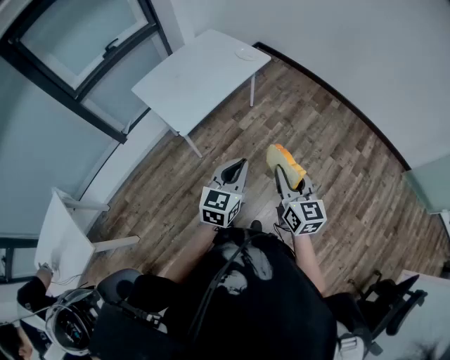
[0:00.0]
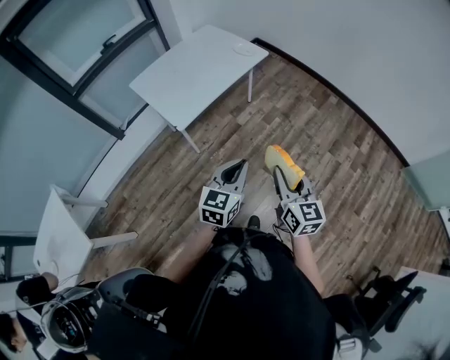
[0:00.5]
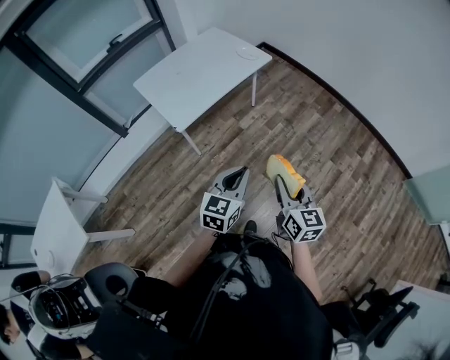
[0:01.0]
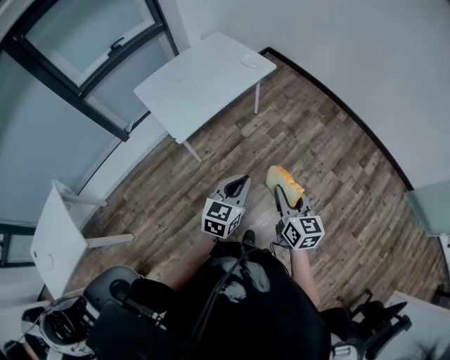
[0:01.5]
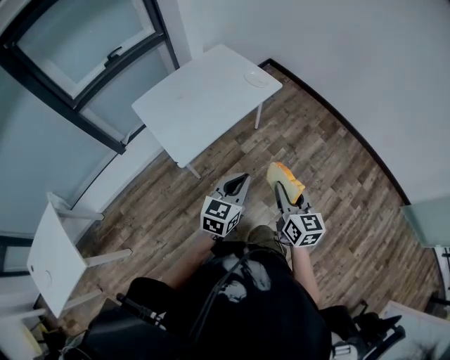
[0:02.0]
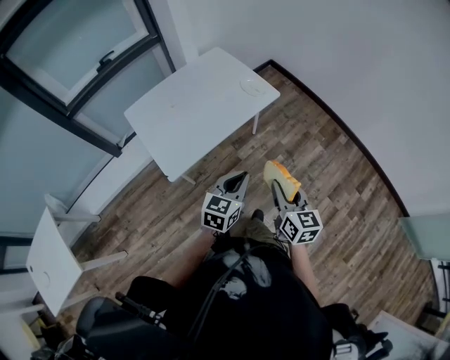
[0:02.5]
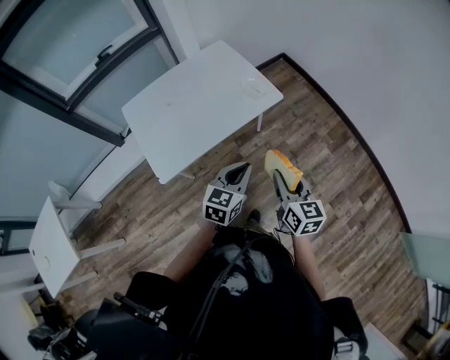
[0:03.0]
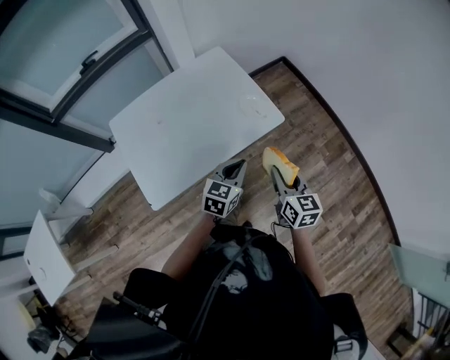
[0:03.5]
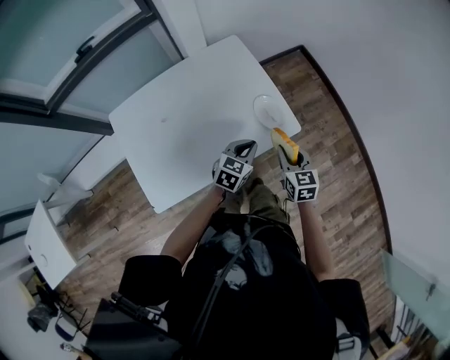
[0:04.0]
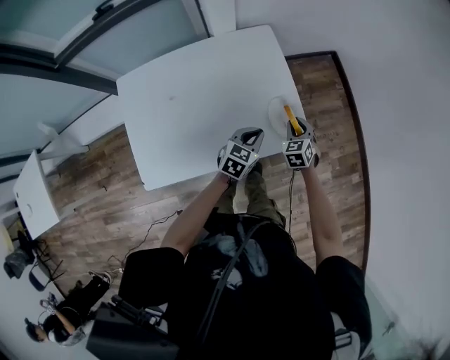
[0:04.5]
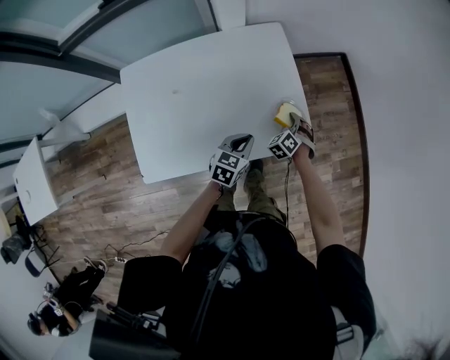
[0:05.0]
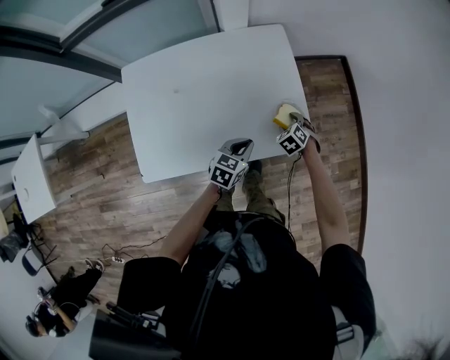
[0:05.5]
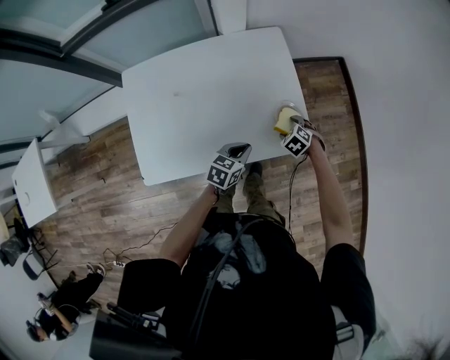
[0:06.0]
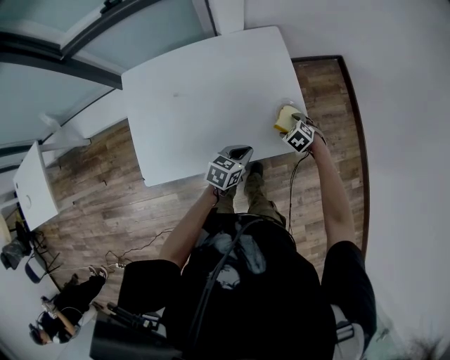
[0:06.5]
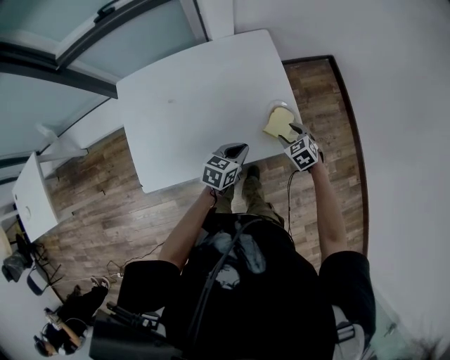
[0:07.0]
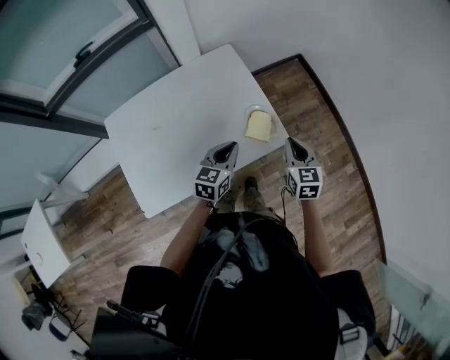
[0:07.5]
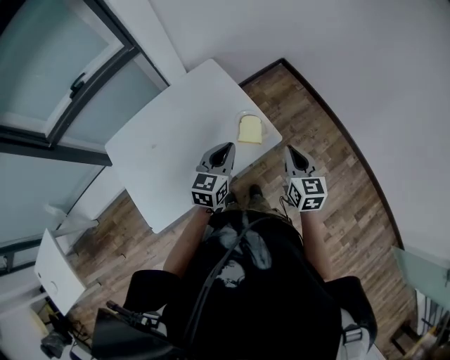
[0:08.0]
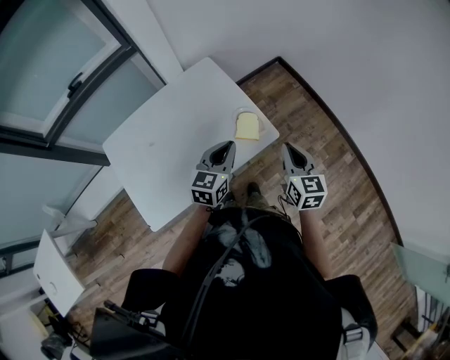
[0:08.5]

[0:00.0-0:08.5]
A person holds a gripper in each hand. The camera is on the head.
0.0 to 2.0 s: Both grippers travel together forward, approximately 15 cm.
2.0 to 4.0 s: The pair of grippers is taken forward, roughly 50 cm. The right gripper rotates some 30 degrees.
4.0 to 6.5 s: The right gripper is displaced downward by approximately 20 cm, angles its fingers downward, by some 40 degrees, and opens its fingers. Meanwhile the left gripper heads downward, covering about 5 cm, and changes its angle by approximately 20 degrees.
6.5 to 8.5 s: The left gripper is displaced upward by roughly 20 cm, and changes its angle by approximately 30 degrees, while the right gripper moves upward, roughly 30 cm, tilts its fingers approximately 50 degrees upward, and closes.

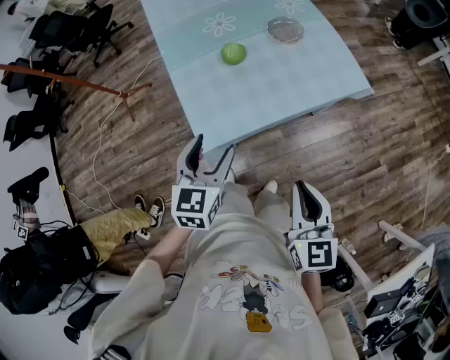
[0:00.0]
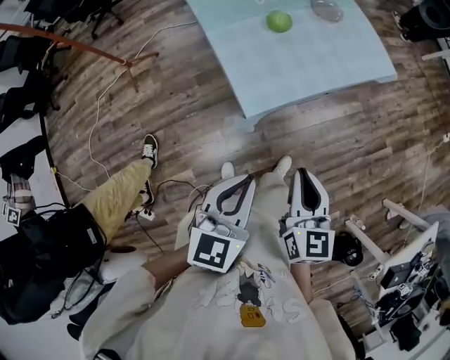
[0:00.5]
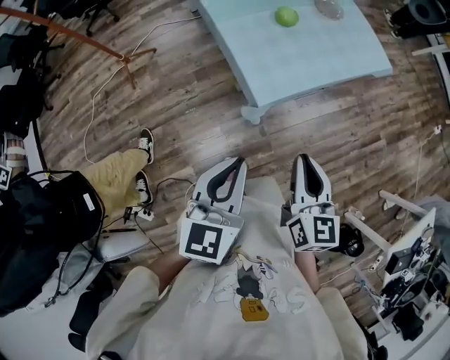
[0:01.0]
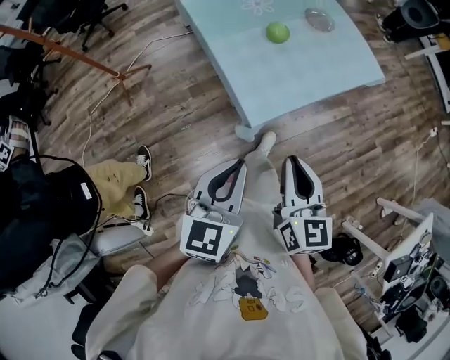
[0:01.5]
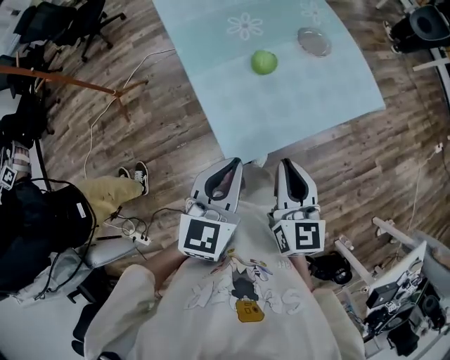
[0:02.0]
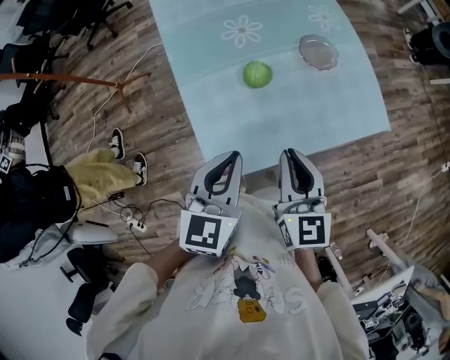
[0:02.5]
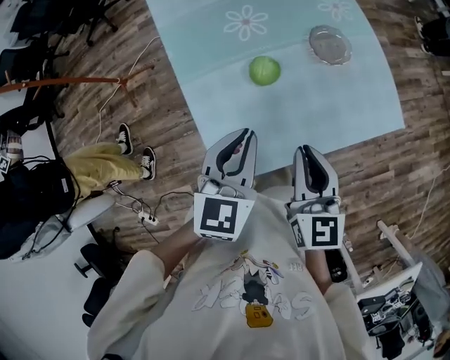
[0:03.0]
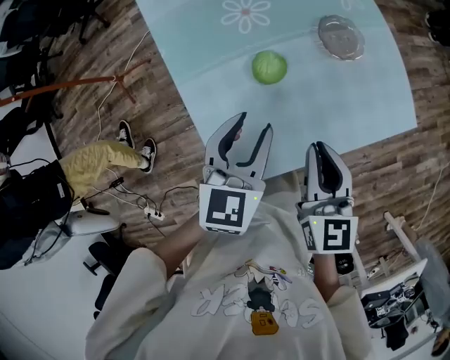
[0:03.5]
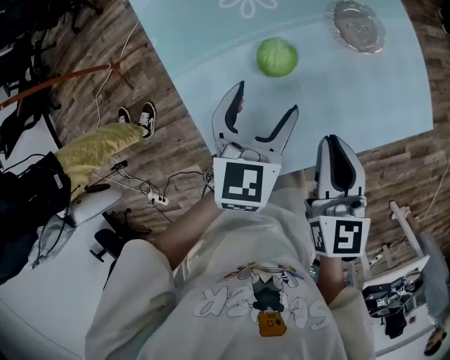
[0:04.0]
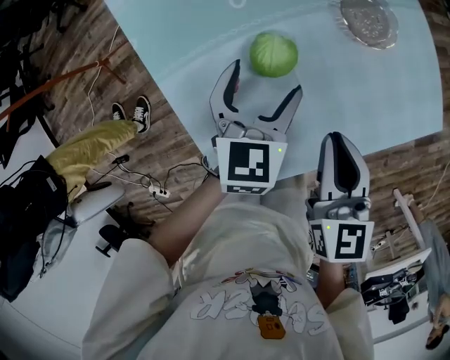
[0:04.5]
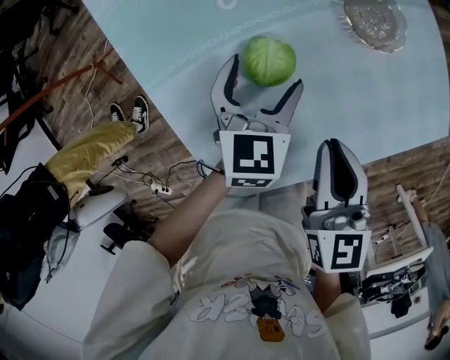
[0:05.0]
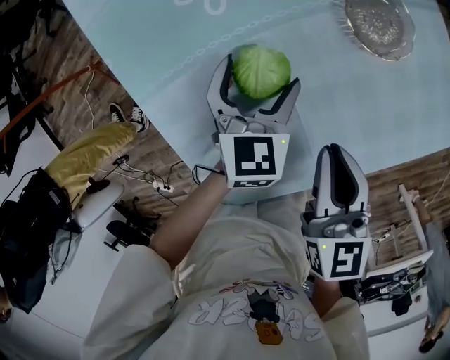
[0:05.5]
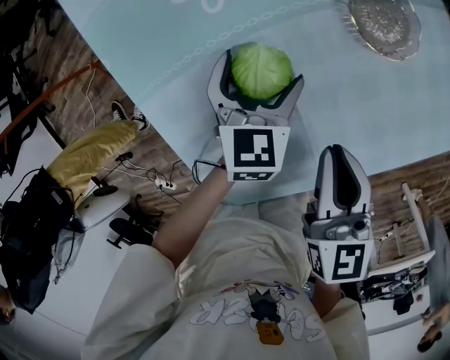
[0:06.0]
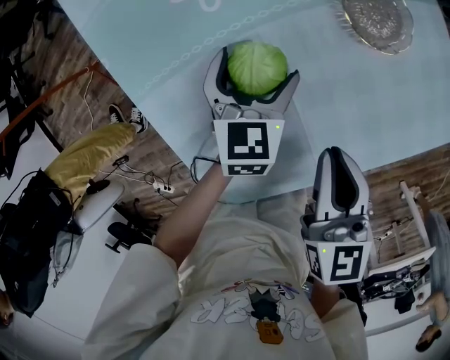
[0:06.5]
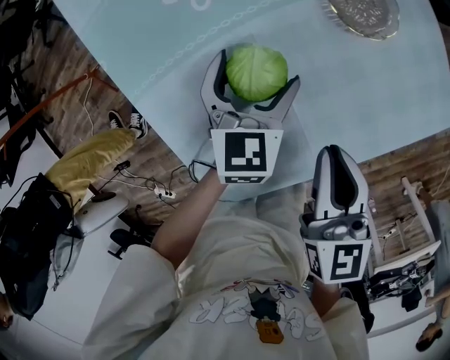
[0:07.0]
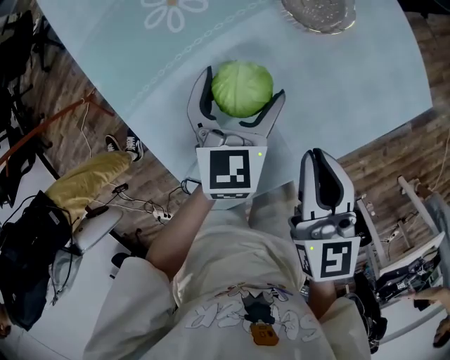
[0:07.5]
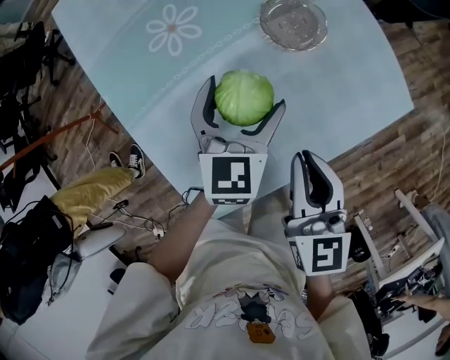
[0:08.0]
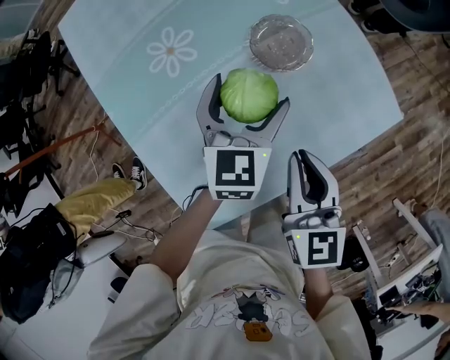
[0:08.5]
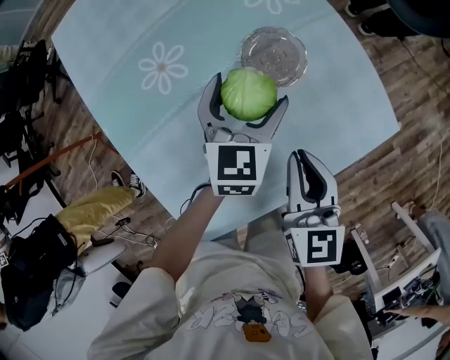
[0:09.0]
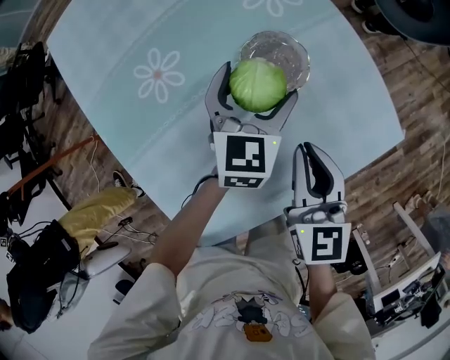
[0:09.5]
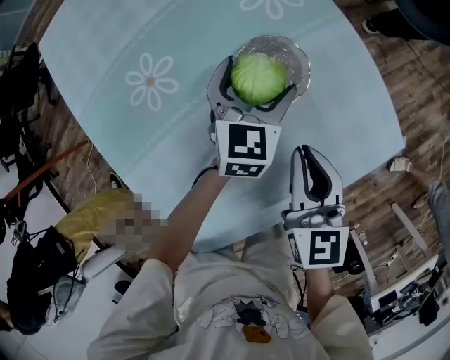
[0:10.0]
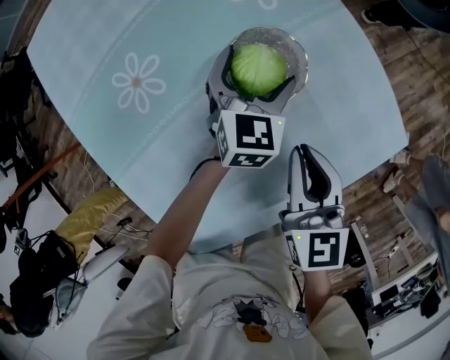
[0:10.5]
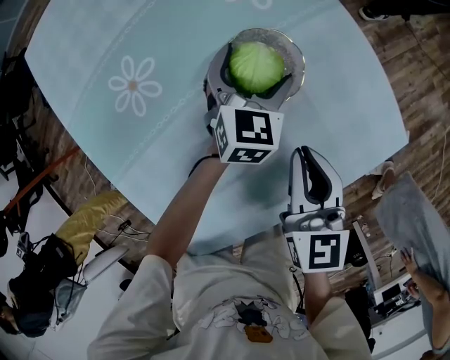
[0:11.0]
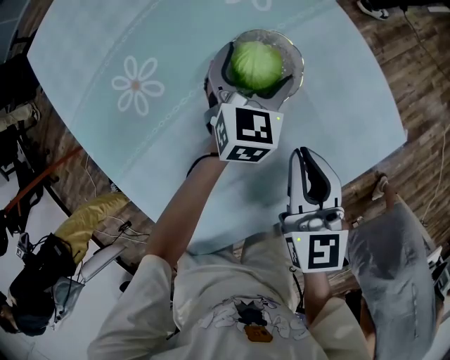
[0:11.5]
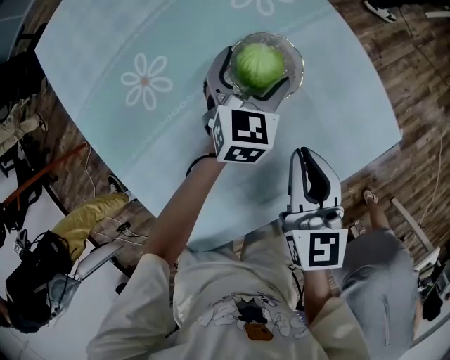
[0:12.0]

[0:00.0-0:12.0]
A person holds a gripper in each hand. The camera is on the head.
0.0 to 2.0 s: The left gripper is displaced to the left by roughly 10 cm, moves roughly 20 cm backward and comes back, and closes its fingers. The right gripper goes about 20 cm to the left and forward.
2.0 to 4.0 s: Both grippers move forward and downward, about 30 cm. The left gripper opens its fingers.
4.0 to 6.0 s: The left gripper moves downward and forward, approximately 20 cm. Meanwhile the right gripper moves downward, roughly 10 cm.
6.0 to 8.0 s: The left gripper goes about 15 cm upward and to the right. Meanwhile the right gripper moves upward and to the right, some 10 cm.
8.0 to 10.0 s: The left gripper is displaced forward and to the right by about 20 cm. The right gripper is displaced forward by approximately 15 cm.
10.0 to 12.0 s: The grippers move only a little.

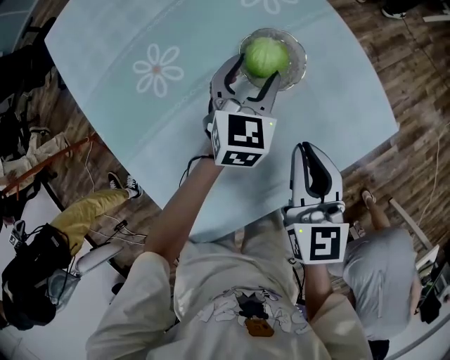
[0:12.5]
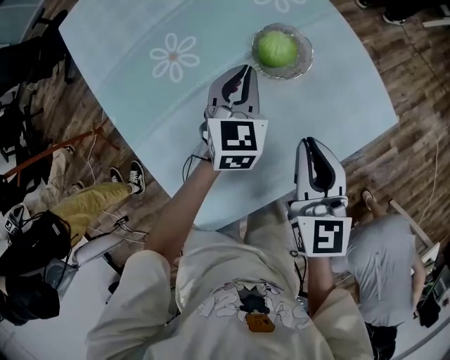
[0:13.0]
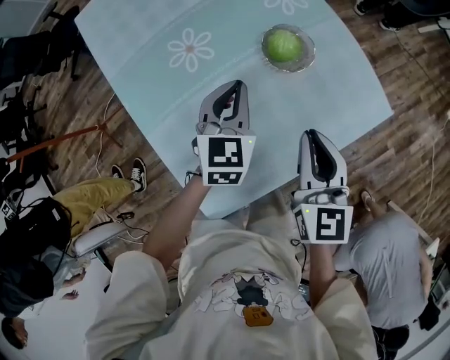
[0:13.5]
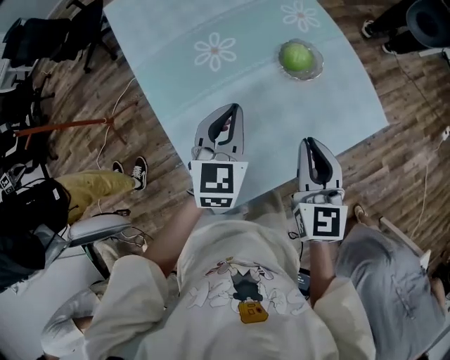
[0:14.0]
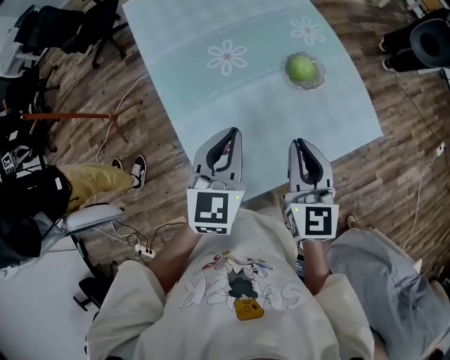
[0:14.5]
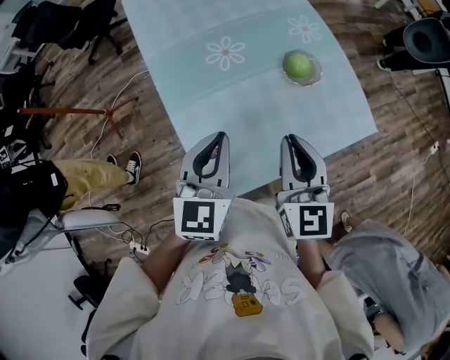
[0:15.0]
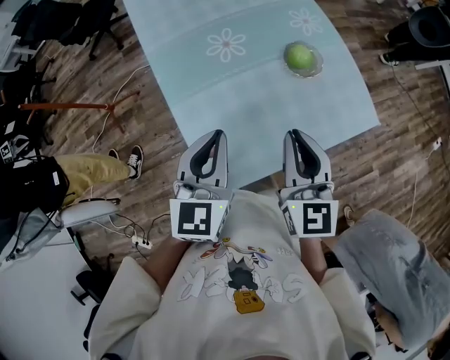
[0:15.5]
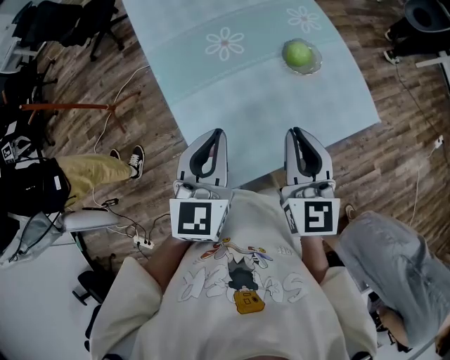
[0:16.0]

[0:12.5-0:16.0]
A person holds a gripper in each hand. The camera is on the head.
12.5 to 14.5 s: The left gripper heads backward, upward and to the left, covering roughly 40 cm, and closes, while the right gripper shifts approximately 20 cm upward, backward and to the left.
14.5 to 16.0 s: The left gripper goes roughly 5 cm backward.

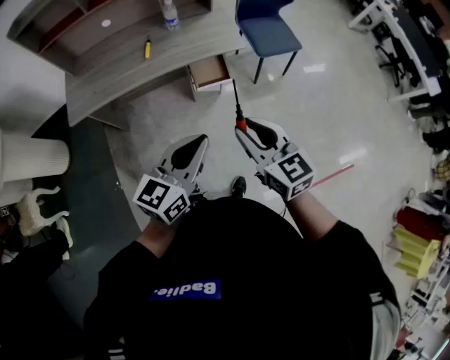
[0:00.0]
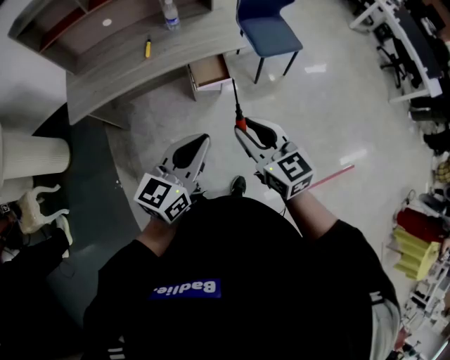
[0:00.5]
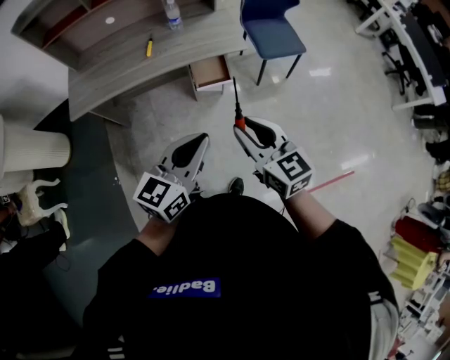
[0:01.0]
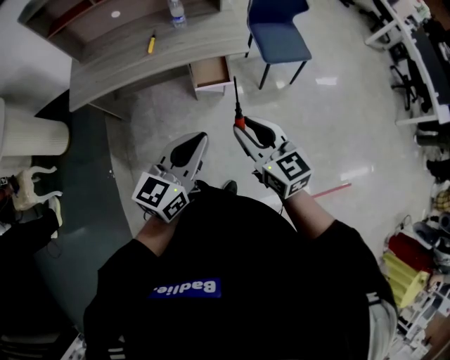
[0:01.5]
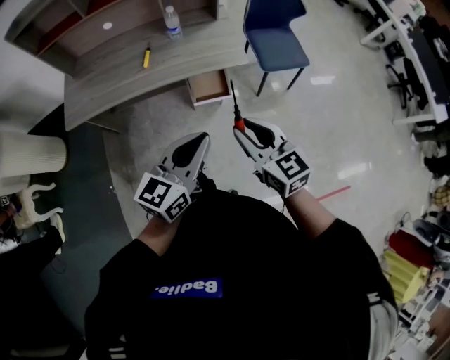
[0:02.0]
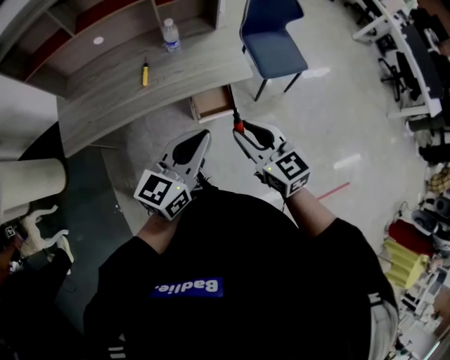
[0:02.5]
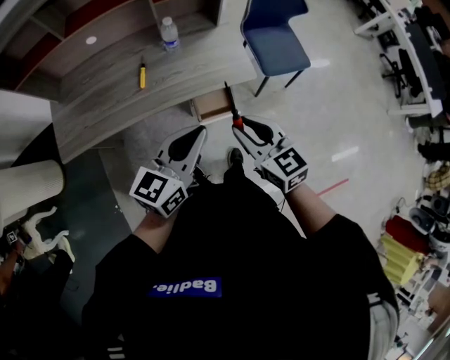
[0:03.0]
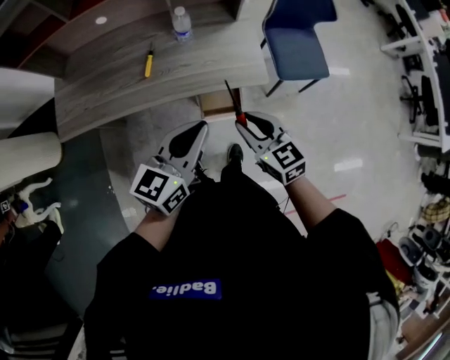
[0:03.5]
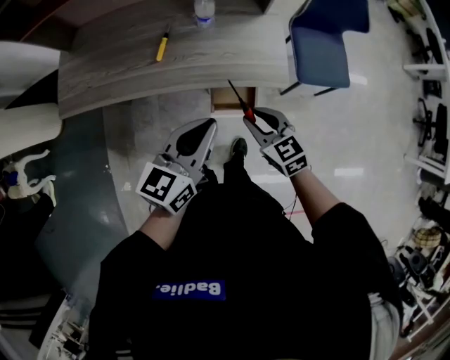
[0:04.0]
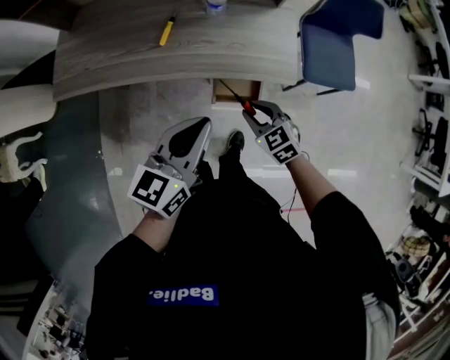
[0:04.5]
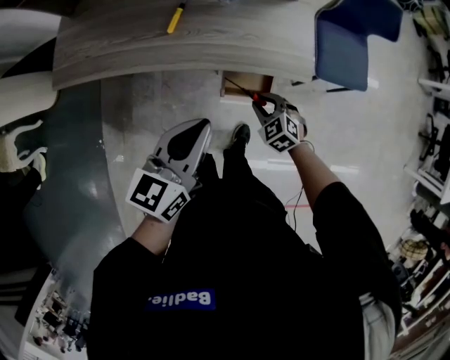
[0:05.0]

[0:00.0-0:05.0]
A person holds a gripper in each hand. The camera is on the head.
0.0 to 2.5 s: Both grippers move forward, some 20 cm.
2.5 to 5.0 s: The left gripper shifts approximately 15 cm downward and forward, and rotates some 30 degrees. Meanwhile the right gripper goes some 35 cm downward and forward, and angles its fingers downward, by some 40 degrees.
